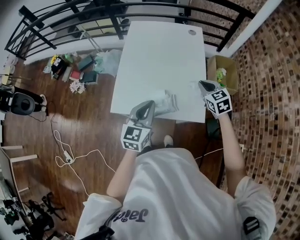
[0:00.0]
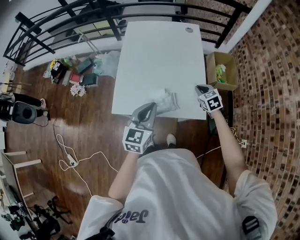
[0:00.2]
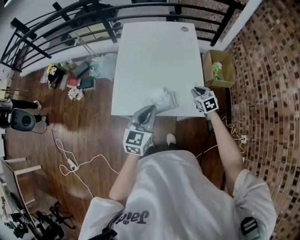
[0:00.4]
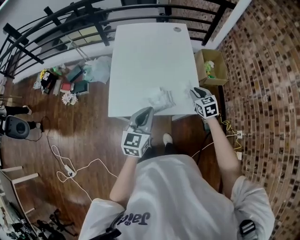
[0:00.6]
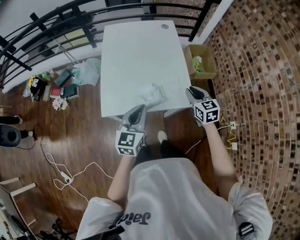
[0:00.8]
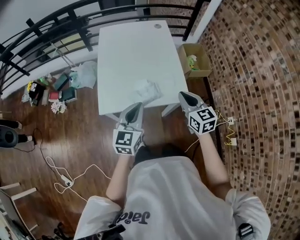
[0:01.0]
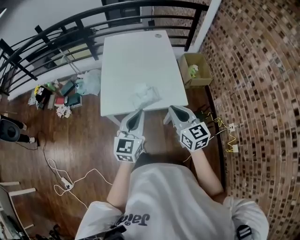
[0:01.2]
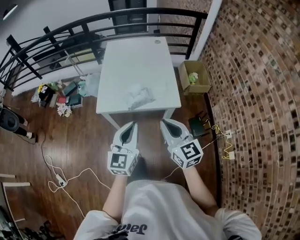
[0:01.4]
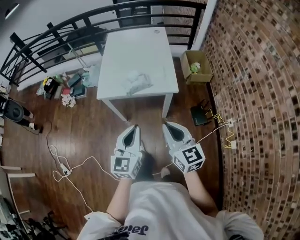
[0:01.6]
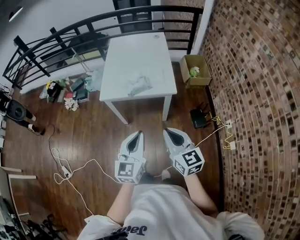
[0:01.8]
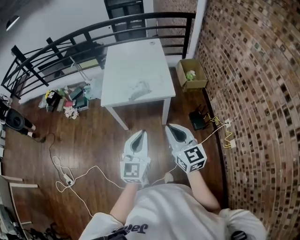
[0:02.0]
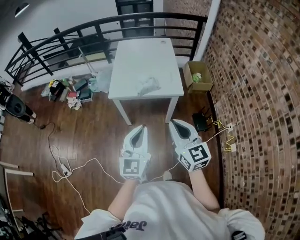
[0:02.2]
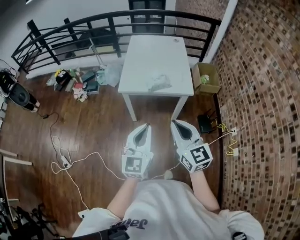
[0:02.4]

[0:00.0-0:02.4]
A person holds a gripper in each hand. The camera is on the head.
0:00.0 to 0:01.2: The right gripper heads backward, covering roughly 25 cm, and changes its angle by approximately 30 degrees. Meanwhile the left gripper is displaced backward by approximately 15 cm.
0:01.2 to 0:02.4: The grippers both shift backward by roughly 25 cm.

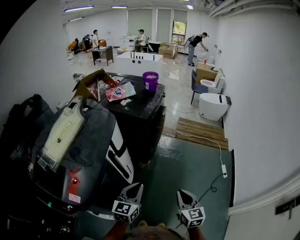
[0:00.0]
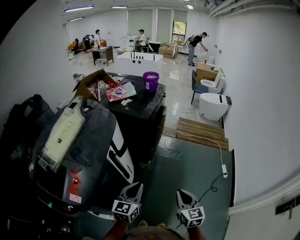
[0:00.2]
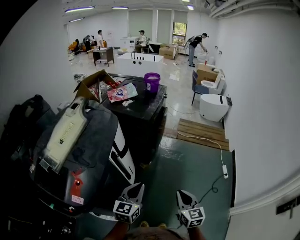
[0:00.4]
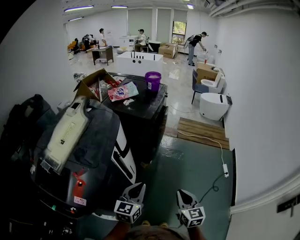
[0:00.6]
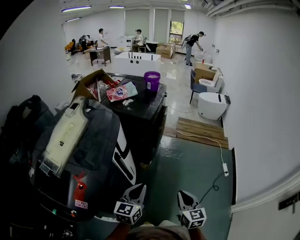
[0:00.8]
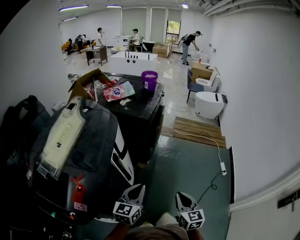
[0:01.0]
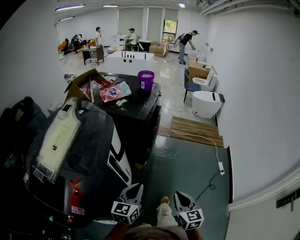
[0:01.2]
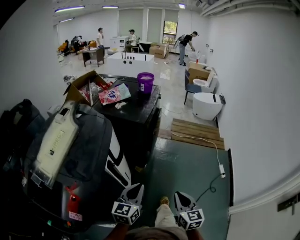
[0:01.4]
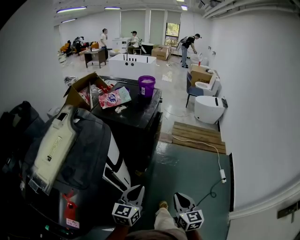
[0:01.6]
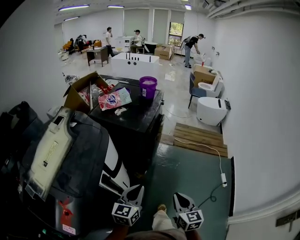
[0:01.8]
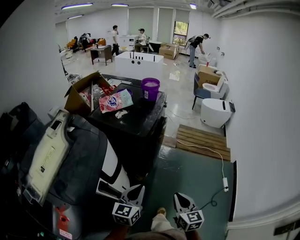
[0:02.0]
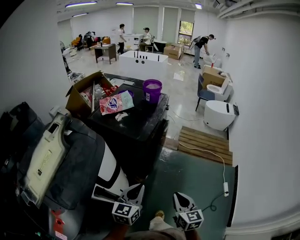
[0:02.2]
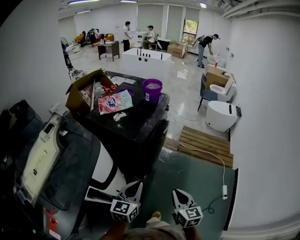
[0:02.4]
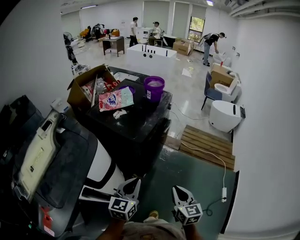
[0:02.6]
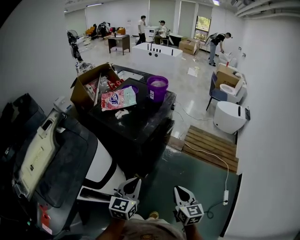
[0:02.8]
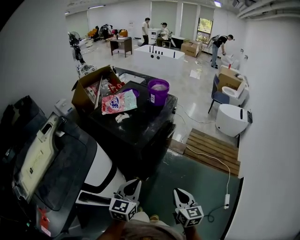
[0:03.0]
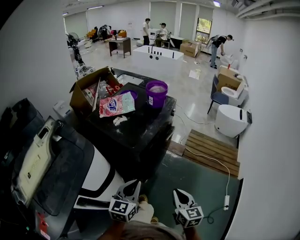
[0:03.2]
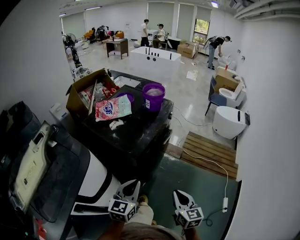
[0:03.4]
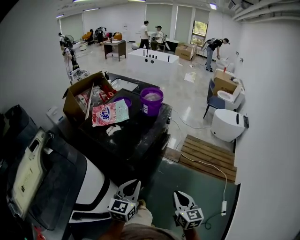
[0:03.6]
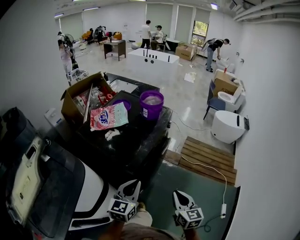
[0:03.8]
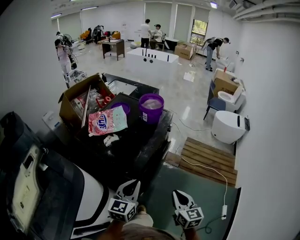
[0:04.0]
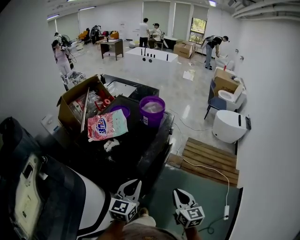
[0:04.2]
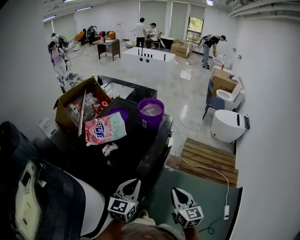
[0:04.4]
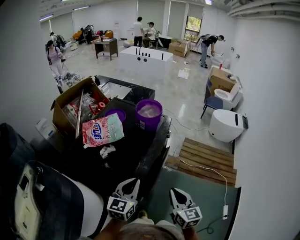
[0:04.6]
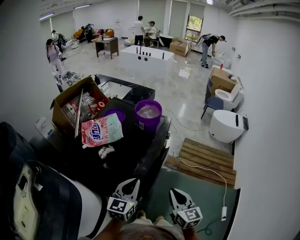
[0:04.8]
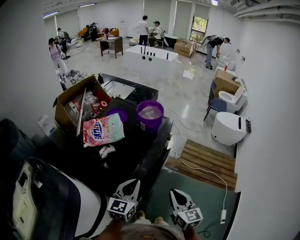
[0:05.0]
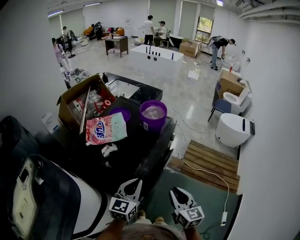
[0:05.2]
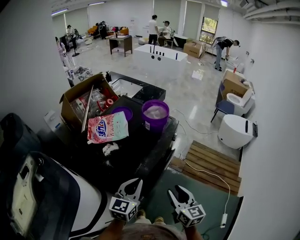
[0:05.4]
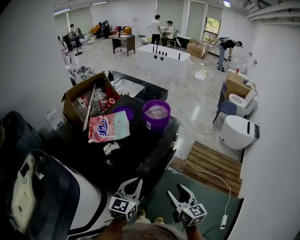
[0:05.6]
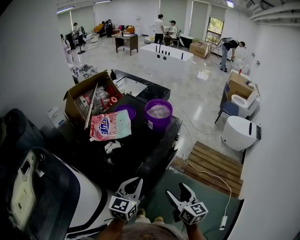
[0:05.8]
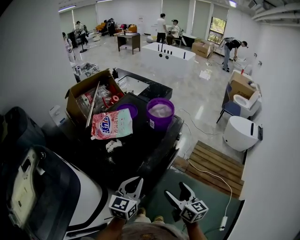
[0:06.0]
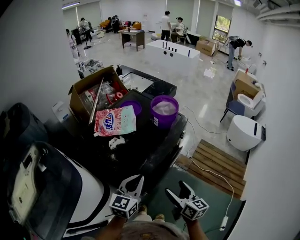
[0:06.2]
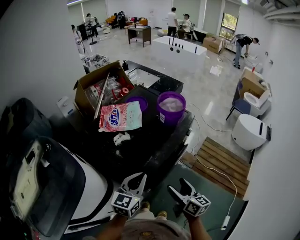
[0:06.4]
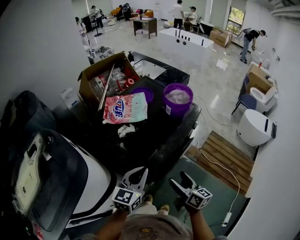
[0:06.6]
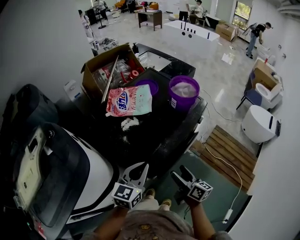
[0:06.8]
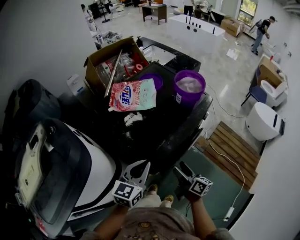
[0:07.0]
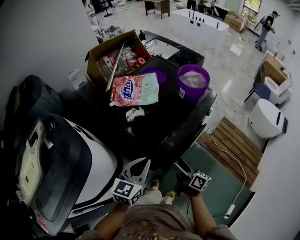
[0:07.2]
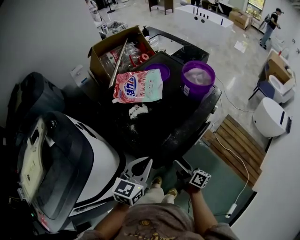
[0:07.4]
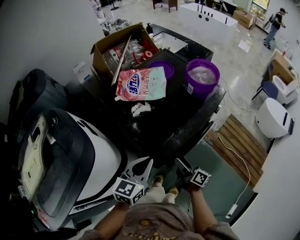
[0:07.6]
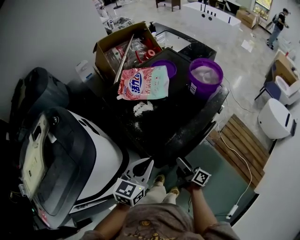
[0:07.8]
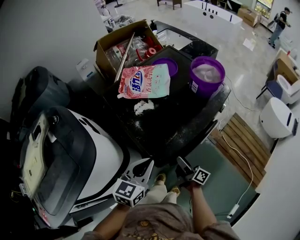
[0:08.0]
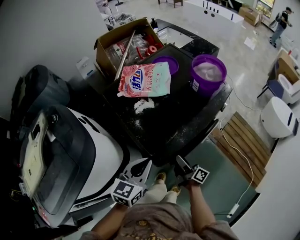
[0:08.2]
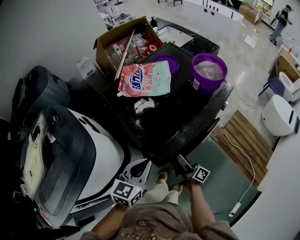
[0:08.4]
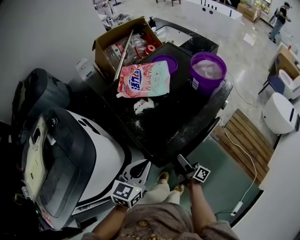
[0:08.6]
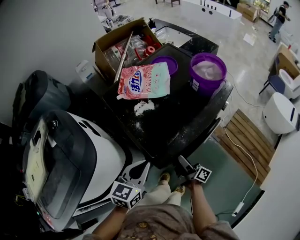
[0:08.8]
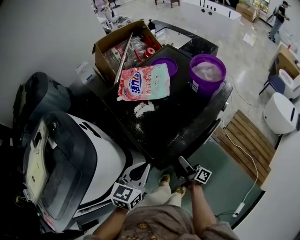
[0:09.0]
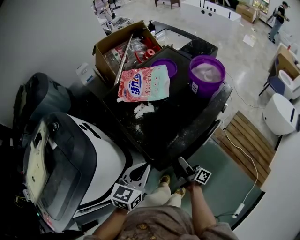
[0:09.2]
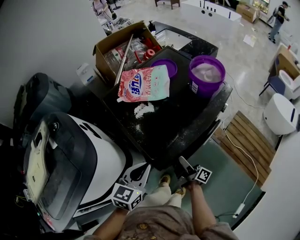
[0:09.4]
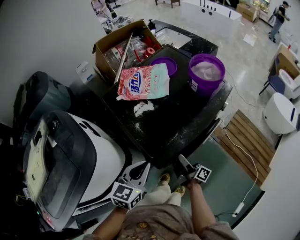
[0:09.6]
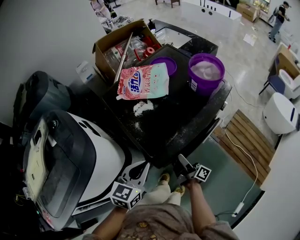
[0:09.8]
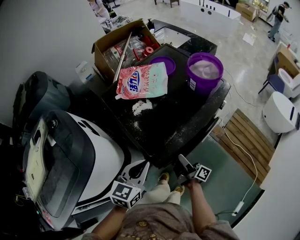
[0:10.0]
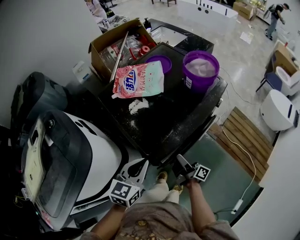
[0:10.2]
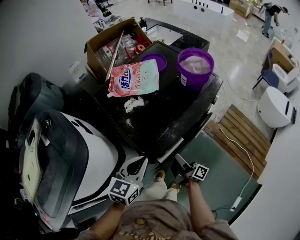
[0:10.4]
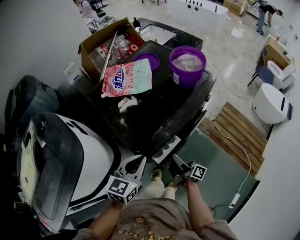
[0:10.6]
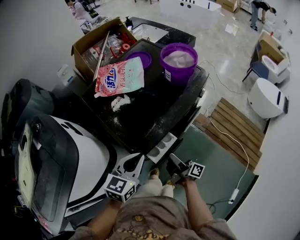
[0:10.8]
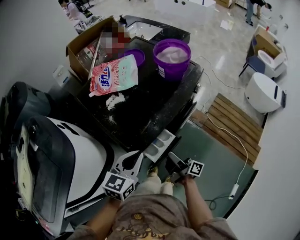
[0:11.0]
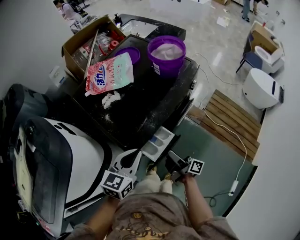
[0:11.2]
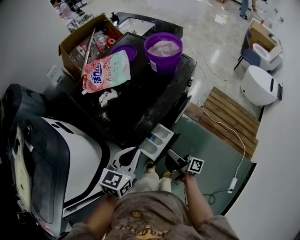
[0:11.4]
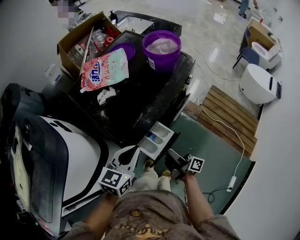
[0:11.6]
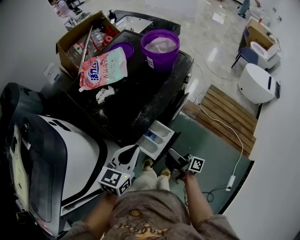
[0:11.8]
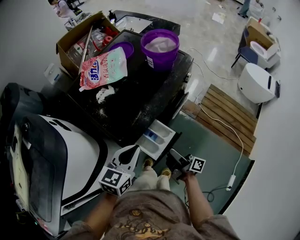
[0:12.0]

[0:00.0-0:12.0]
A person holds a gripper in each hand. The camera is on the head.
0:00.0 to 0:01.6: Both grippers travel together forward, about 10 cm.
0:01.6 to 0:03.0: Both grippers travel together forward, approximately 25 cm.
0:03.0 to 0:04.4: Both grippers move forward, some 25 cm.
0:04.4 to 0:06.0: The right gripper is displaced forward by about 5 cm, changes its angle by about 20 degrees, and opens.
0:06.0 to 0:07.6: The right gripper goes about 20 cm downward, to the left and forward, and rotates approximately 40 degrees. The left gripper moves to the left, approximately 5 cm.
0:07.6 to 0:10.4: There are only small adjustments of the grippers.
0:10.4 to 0:12.0: The right gripper shifts roughly 10 cm to the right and backward; the left gripper goes roughly 5 cm to the right.

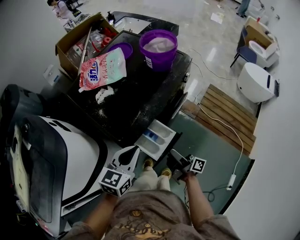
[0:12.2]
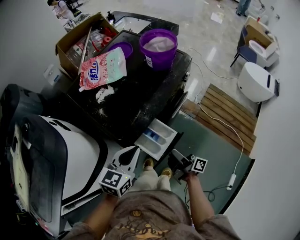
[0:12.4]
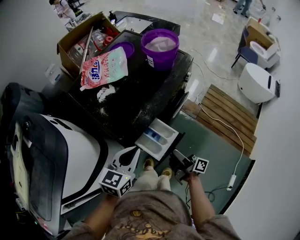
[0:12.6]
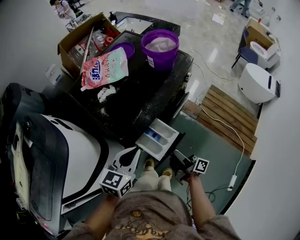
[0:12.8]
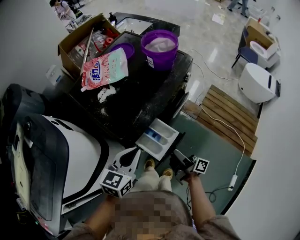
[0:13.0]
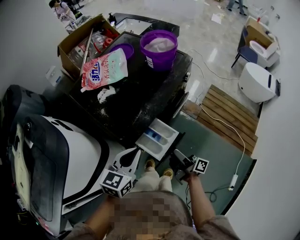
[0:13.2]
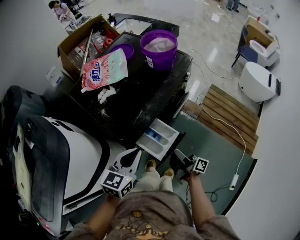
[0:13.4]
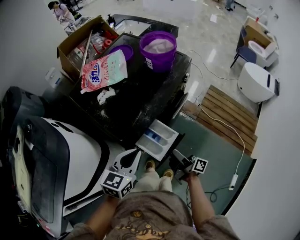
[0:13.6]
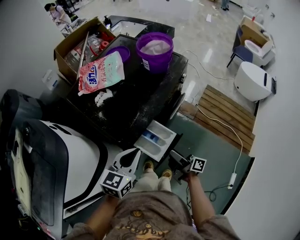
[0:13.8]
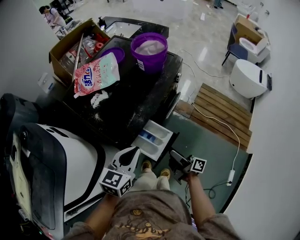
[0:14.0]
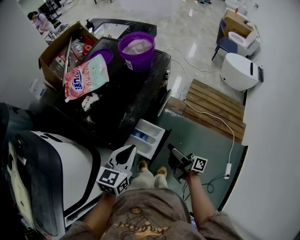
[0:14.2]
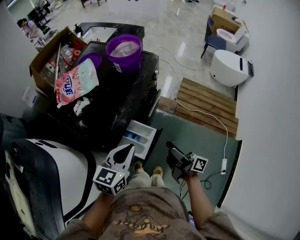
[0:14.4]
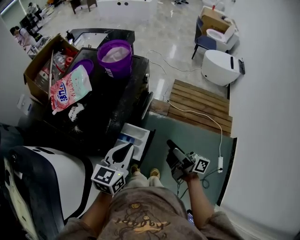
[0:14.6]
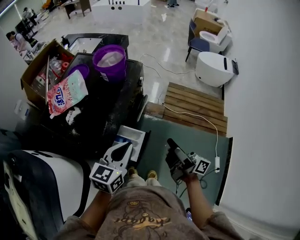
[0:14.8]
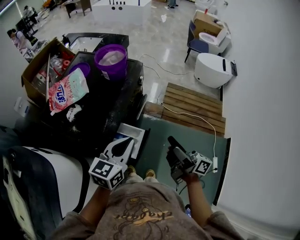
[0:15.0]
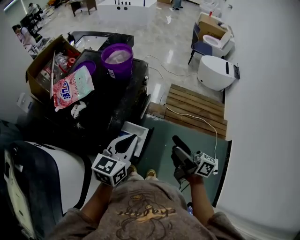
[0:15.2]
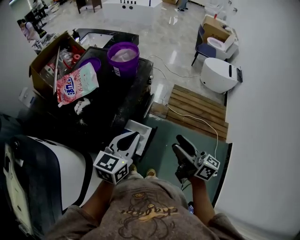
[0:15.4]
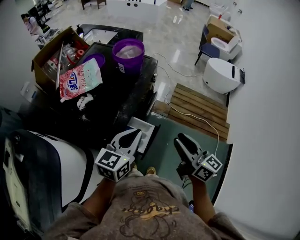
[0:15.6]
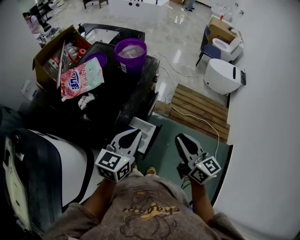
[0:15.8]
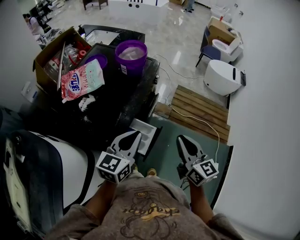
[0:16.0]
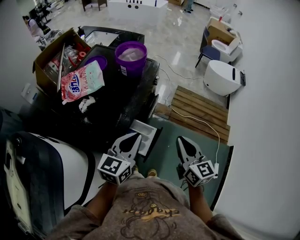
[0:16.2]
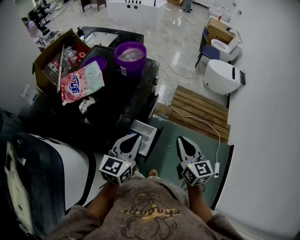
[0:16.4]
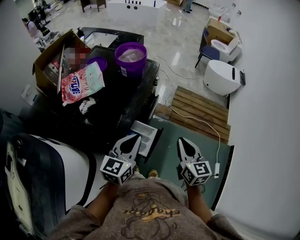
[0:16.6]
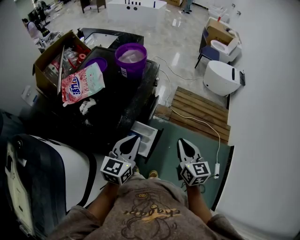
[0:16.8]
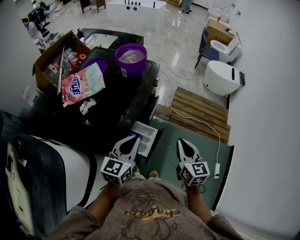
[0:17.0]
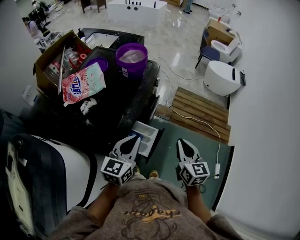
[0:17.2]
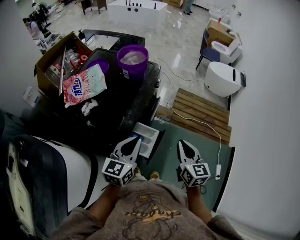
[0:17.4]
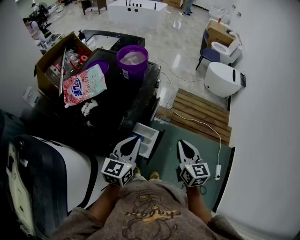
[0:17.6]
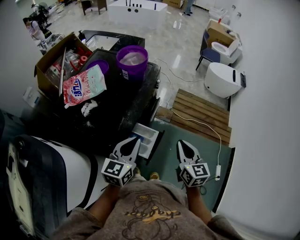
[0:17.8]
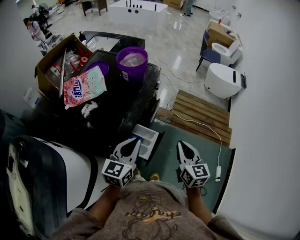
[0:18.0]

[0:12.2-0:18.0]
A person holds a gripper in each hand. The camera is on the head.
0:12.2 to 0:13.6: The grippers make only small movements.
0:13.6 to 0:15.0: The right gripper is displaced upward and to the right by approximately 25 cm, and changes its angle by about 30 degrees. Meanwhile the left gripper shifts roughly 10 cm to the right and upward, and rotates some 20 degrees.
0:15.0 to 0:16.6: The right gripper points its fingers roughly 40 degrees further downward, and closes up.
0:16.6 to 0:18.0: The grippers move only a little.

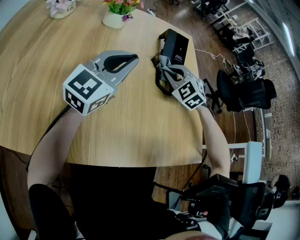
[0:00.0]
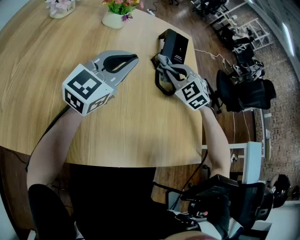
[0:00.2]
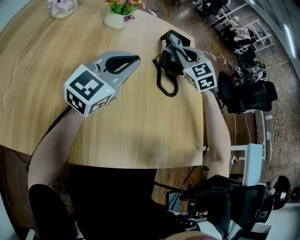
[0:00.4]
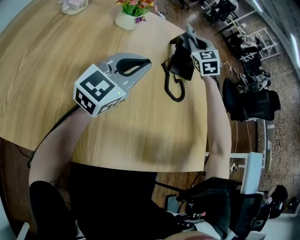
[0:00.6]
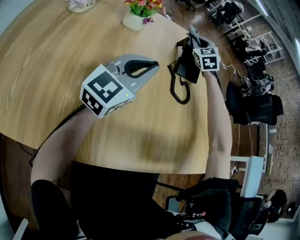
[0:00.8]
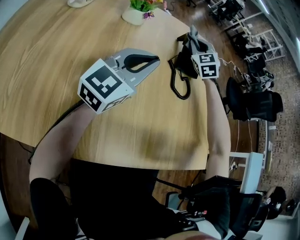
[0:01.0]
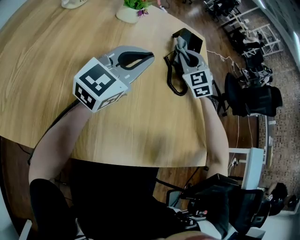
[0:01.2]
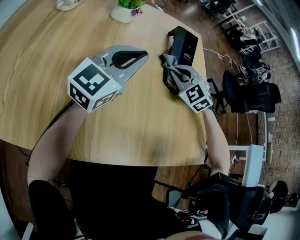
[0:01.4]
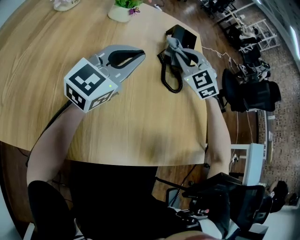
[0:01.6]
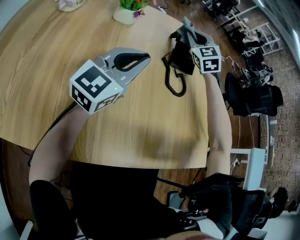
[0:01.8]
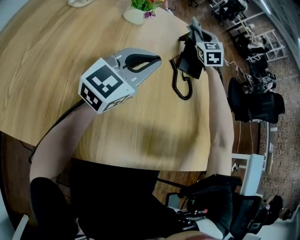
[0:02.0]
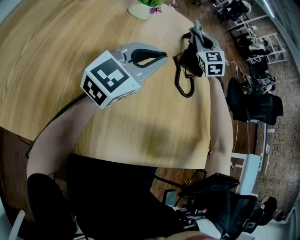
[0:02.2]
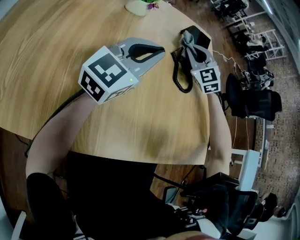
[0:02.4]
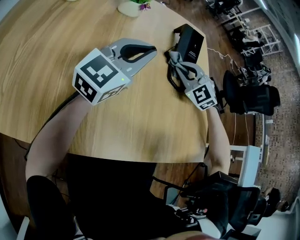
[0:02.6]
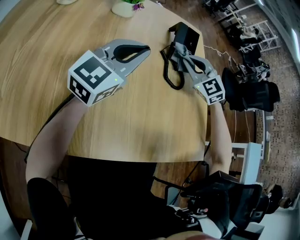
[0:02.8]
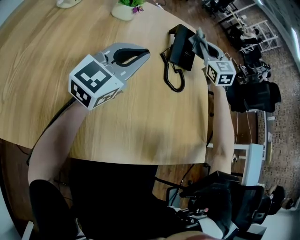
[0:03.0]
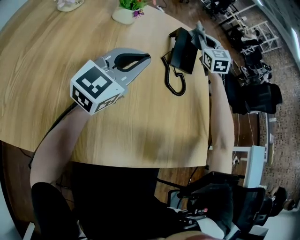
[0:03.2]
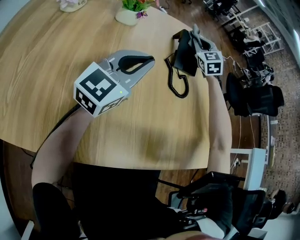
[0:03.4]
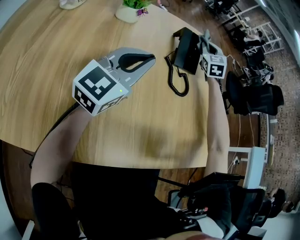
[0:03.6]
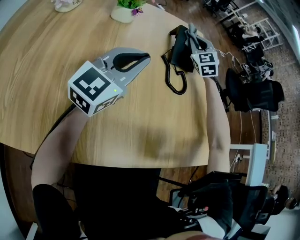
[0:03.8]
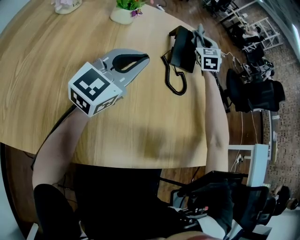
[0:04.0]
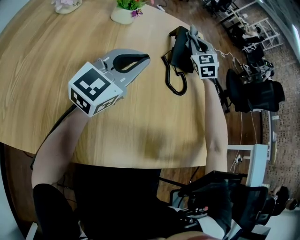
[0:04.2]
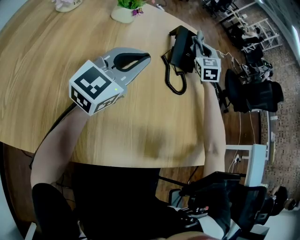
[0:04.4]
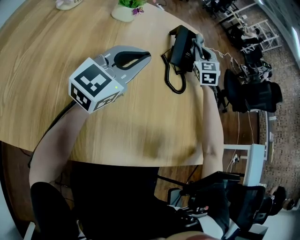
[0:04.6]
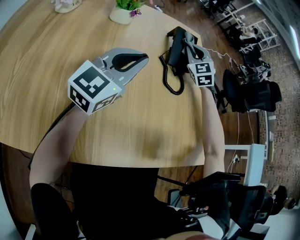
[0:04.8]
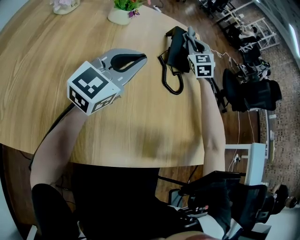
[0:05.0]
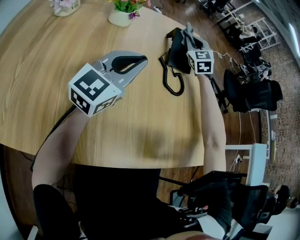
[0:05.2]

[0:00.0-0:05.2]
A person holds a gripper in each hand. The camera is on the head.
0:00.0 to 0:01.8: The right gripper moves forward and backward over some 20 cm, changing direction 2 times, and swivels roughly 30 degrees.
0:01.8 to 0:03.4: The right gripper swings forward and backward, about 20 cm each way, with 2 reversals.
0:03.4 to 0:05.2: The grippers stay close to where they were, moving slightly.
